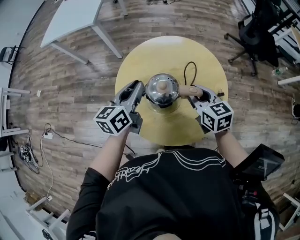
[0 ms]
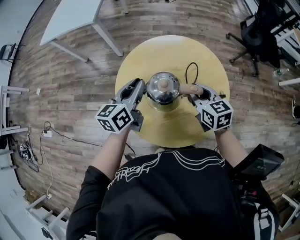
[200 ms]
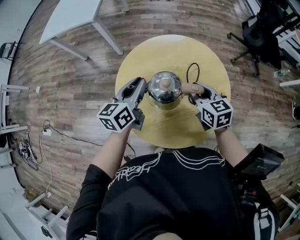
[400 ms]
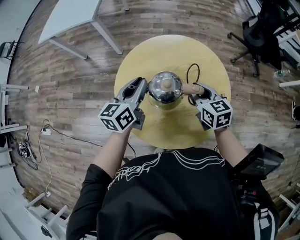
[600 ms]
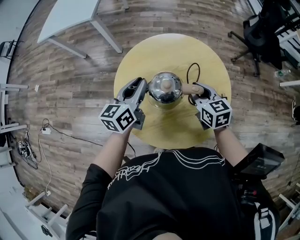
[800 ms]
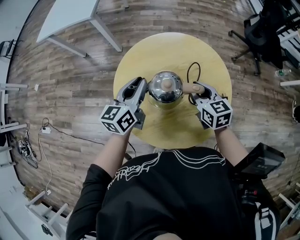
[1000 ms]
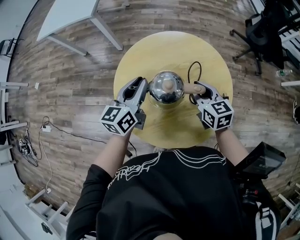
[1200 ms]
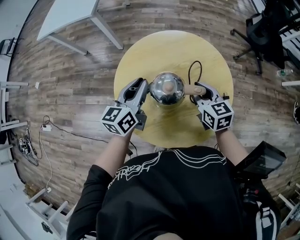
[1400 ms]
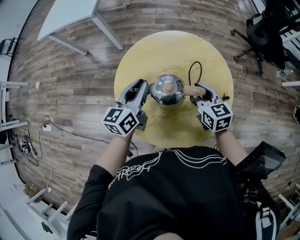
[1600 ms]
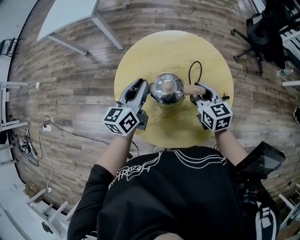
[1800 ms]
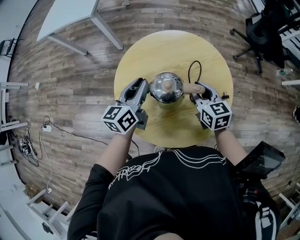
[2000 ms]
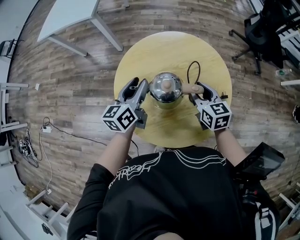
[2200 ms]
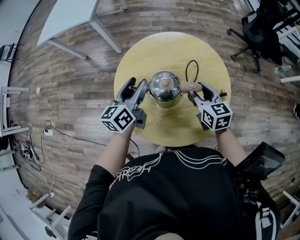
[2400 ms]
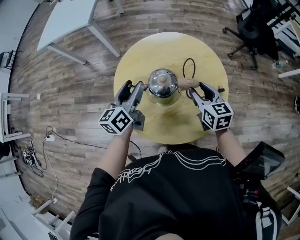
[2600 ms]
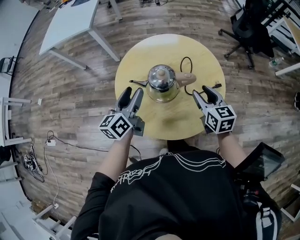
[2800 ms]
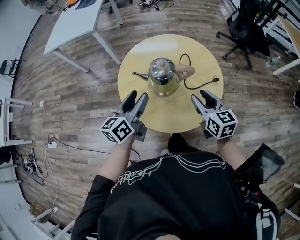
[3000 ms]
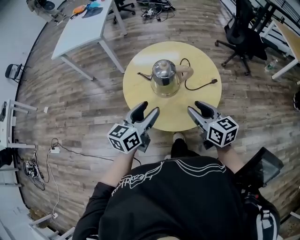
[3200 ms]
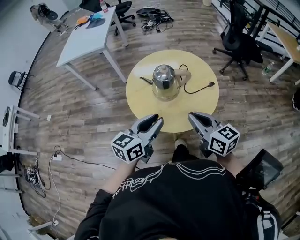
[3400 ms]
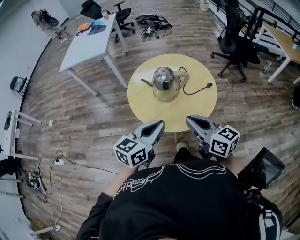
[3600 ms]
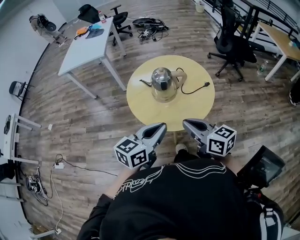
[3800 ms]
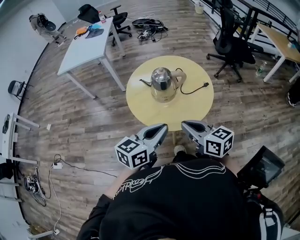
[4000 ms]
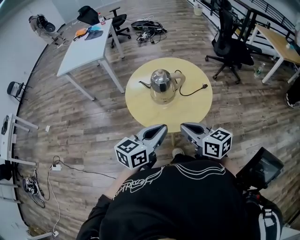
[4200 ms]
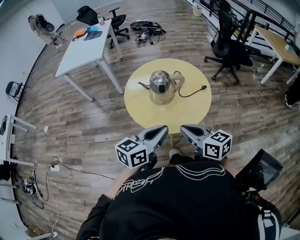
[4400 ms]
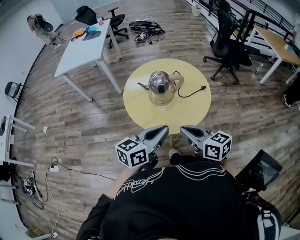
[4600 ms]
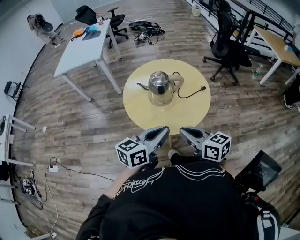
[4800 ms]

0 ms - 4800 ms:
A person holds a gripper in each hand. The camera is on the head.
0 ms - 1600 ms: The right gripper travels downward by about 5 cm.
1600 ms - 3200 ms: The left gripper goes about 20 cm backward, and opens up; the right gripper moves backward and upward, roughly 20 cm.
3200 ms - 4800 ms: The right gripper travels backward by some 10 cm, and closes, while the left gripper is displaced backward, to the right and upward by approximately 15 cm, and closes up.

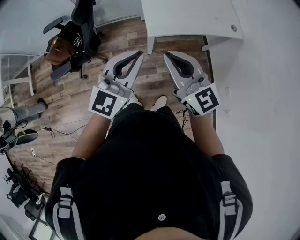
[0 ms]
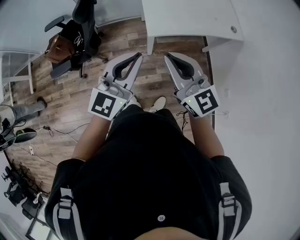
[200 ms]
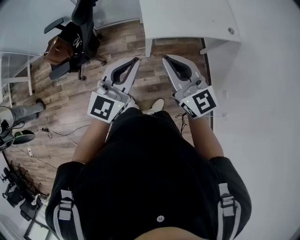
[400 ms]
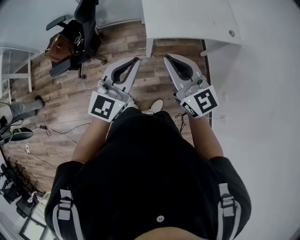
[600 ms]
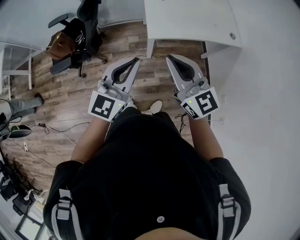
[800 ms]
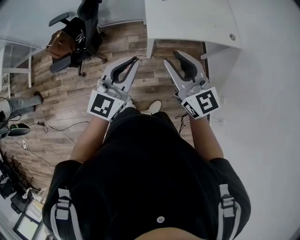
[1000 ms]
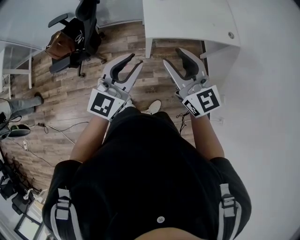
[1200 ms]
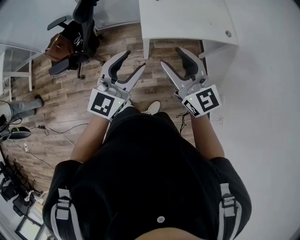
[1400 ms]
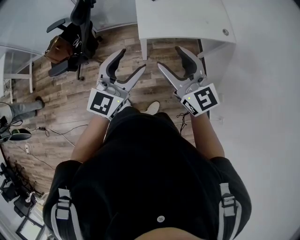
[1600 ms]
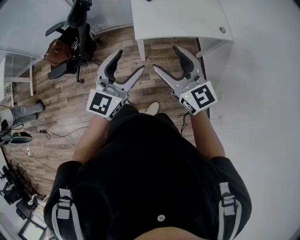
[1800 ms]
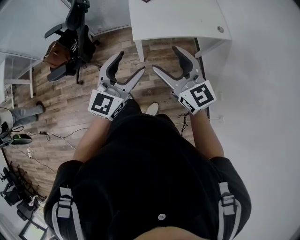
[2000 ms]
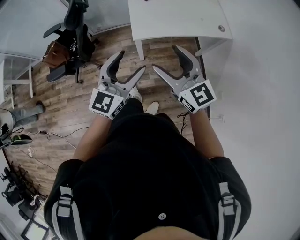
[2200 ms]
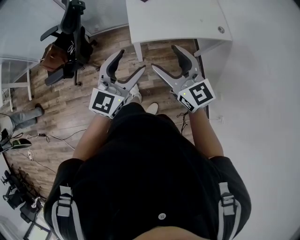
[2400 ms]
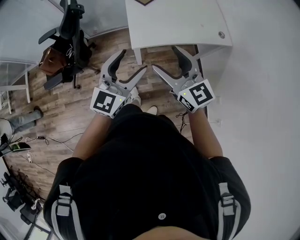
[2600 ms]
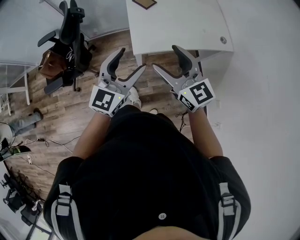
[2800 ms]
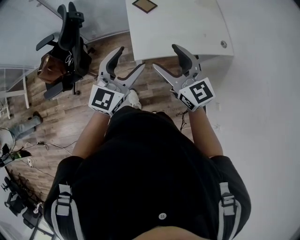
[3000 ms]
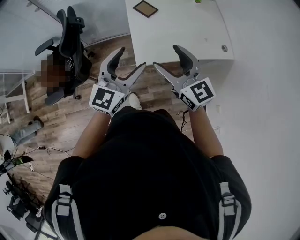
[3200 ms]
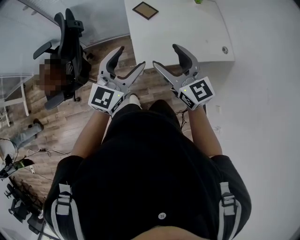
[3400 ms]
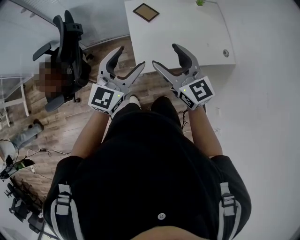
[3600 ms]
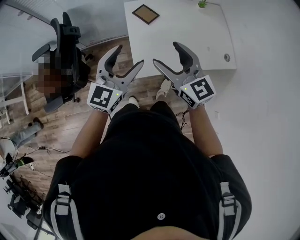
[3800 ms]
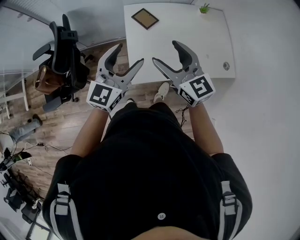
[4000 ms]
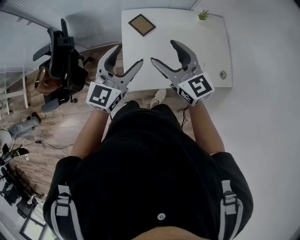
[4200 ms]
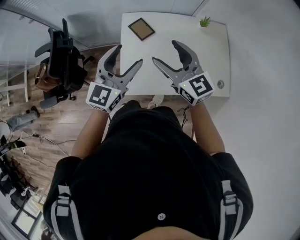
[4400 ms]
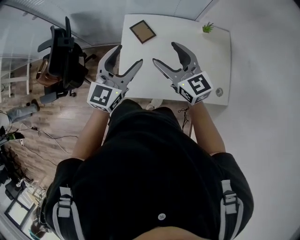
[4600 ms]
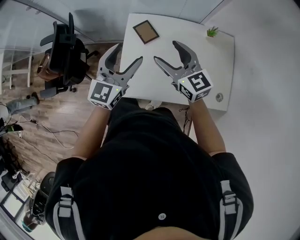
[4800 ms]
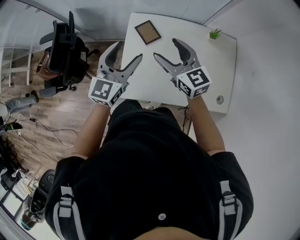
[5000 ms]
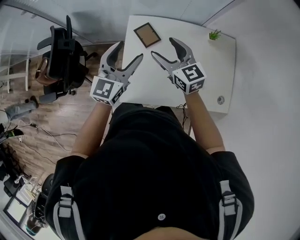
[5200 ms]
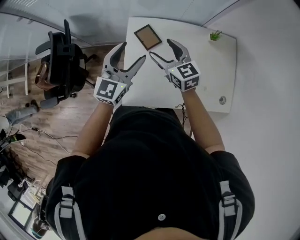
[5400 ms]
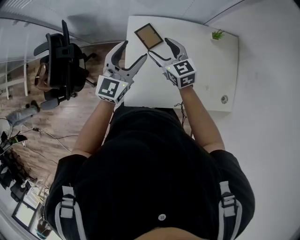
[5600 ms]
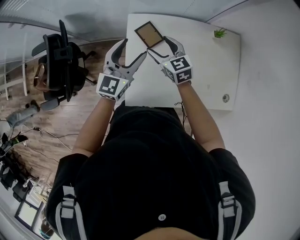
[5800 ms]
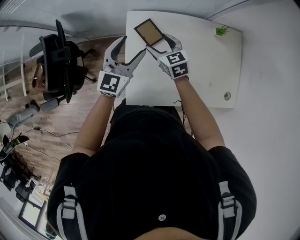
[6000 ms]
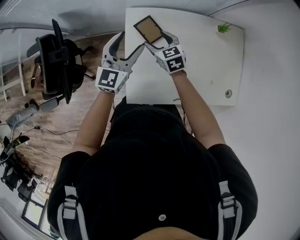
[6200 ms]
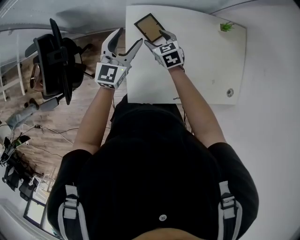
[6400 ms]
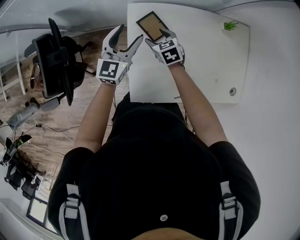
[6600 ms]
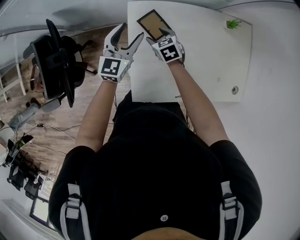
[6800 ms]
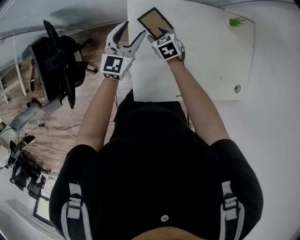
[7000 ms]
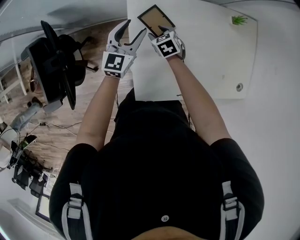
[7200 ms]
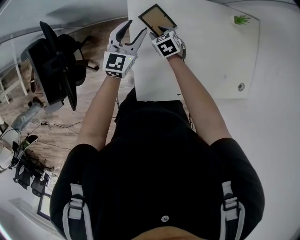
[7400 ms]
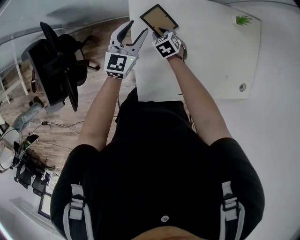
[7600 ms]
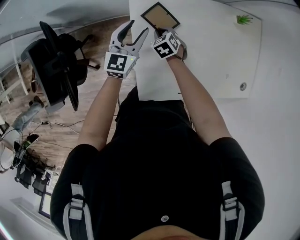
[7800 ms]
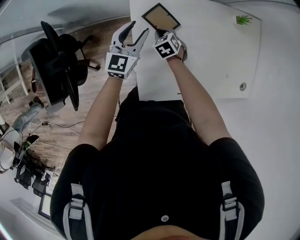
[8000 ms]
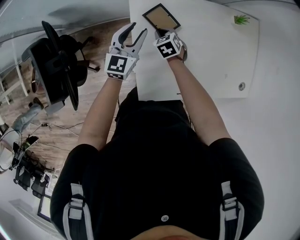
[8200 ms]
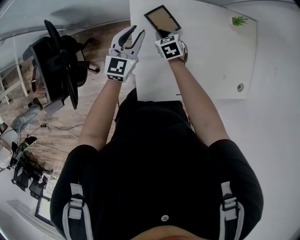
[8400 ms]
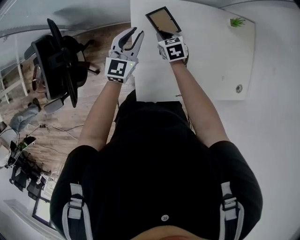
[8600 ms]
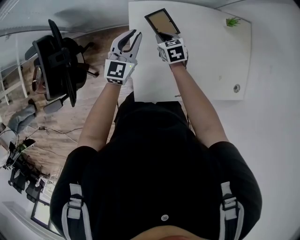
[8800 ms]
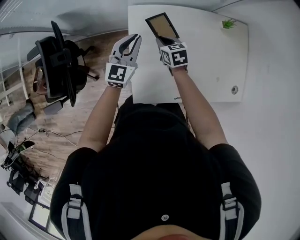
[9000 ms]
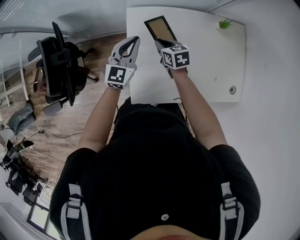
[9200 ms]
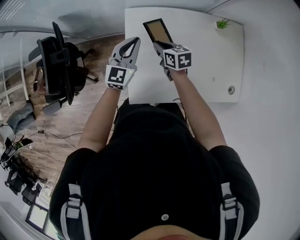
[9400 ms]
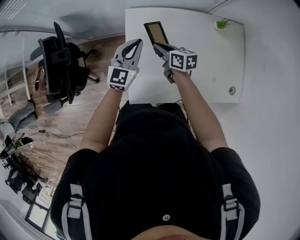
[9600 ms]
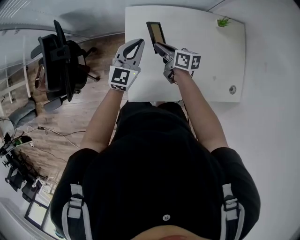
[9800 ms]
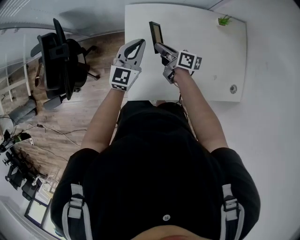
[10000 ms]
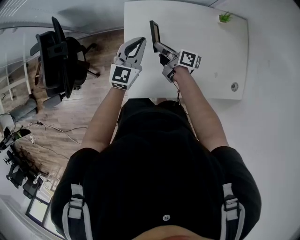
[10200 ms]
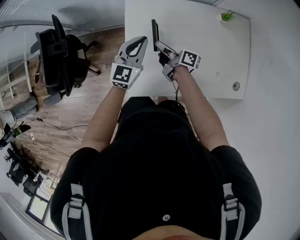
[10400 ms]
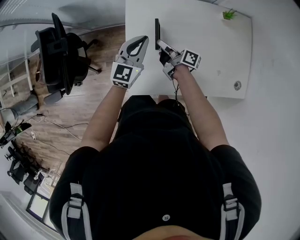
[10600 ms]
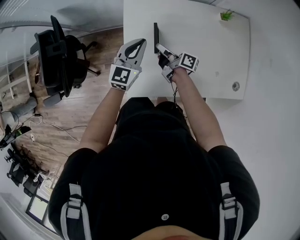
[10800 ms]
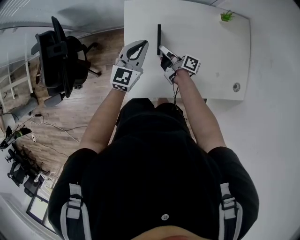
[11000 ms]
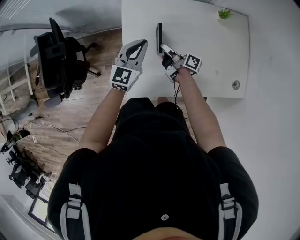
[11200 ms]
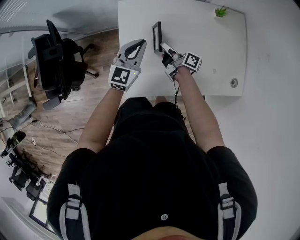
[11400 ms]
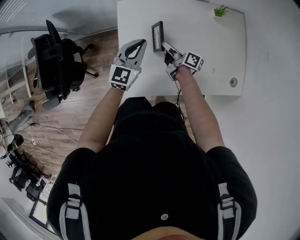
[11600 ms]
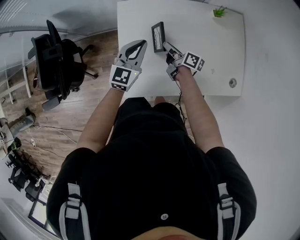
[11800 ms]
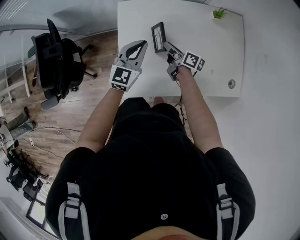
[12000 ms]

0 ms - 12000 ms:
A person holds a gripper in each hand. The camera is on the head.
0 ms - 1600 ms: The right gripper moves to the right, roughly 10 cm, and opens up. Meanwhile the left gripper is displaced backward and to the right by some 10 cm, and opens up.
1600 ms - 3000 ms: The two grippers go about 20 cm forward.
3000 ms - 4400 ms: The two grippers go approximately 30 cm forward.
4400 ms - 6000 ms: The right gripper travels downward and forward by some 30 cm, and swivels some 30 degrees. Meanwhile the left gripper moves forward and downward, approximately 20 cm.
6000 ms - 7600 ms: The right gripper shifts about 20 cm downward, rotates approximately 30 degrees, and closes up. Meanwhile the left gripper is displaced downward and forward by some 15 cm.
7600 ms - 9000 ms: The right gripper heads upward, covering roughly 10 cm, and changes its angle by approximately 20 degrees, while the left gripper moves upward and backward, roughly 10 cm, and closes.
9000 ms - 10400 ms: The left gripper shifts approximately 10 cm backward and to the right, while the right gripper moves backward, roughly 5 cm, and angles its fingers upward, by some 40 degrees.
10400 ms - 12000 ms: The right gripper is displaced to the right by some 10 cm.

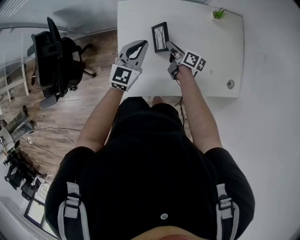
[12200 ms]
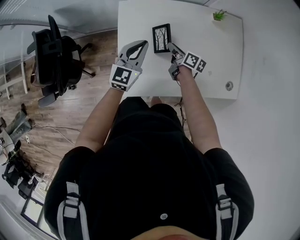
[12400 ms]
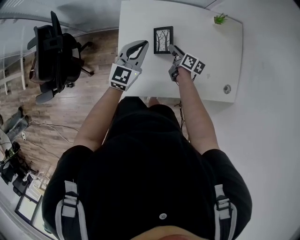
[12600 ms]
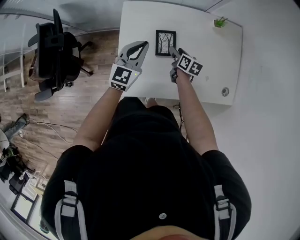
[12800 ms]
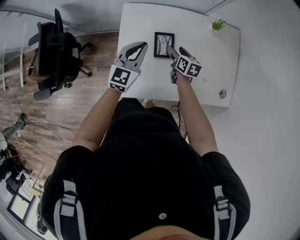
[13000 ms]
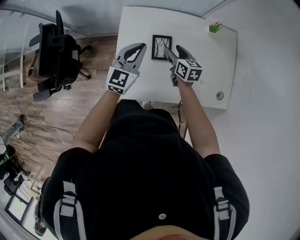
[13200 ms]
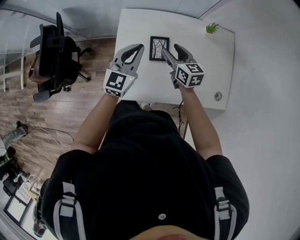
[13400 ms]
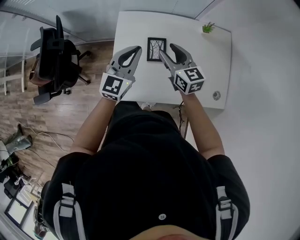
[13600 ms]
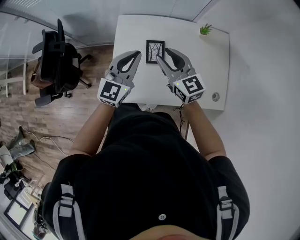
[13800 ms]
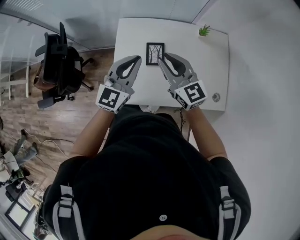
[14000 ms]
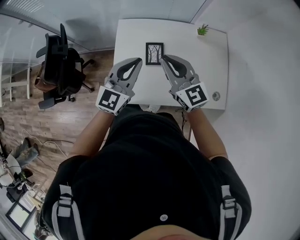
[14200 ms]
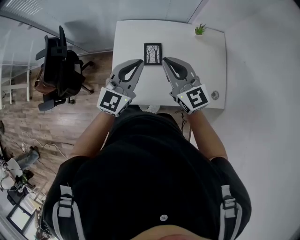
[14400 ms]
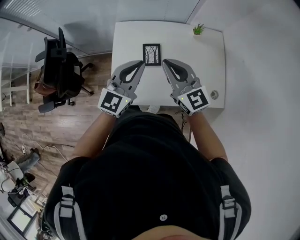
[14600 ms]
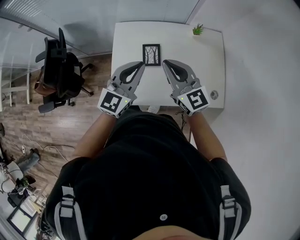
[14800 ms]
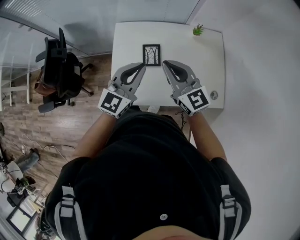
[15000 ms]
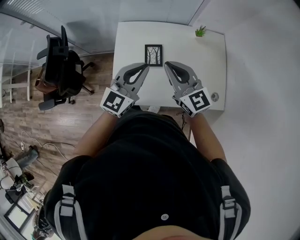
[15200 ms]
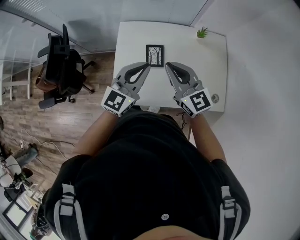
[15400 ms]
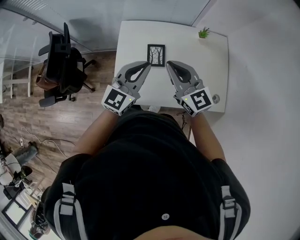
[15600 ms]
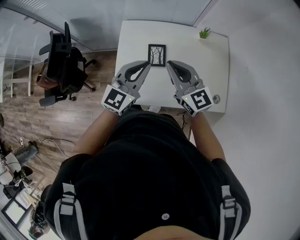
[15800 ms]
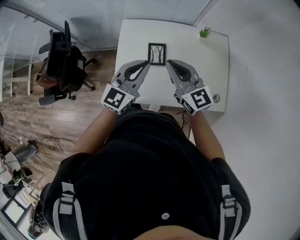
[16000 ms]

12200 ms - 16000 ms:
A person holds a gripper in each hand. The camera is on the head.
12200 ms - 13400 ms: The left gripper travels upward by roughly 5 cm. The right gripper shifts some 15 cm upward, rotates around the line of its fingers by approximately 50 degrees, counterclockwise from behind, and opens.
13400 ms - 14800 ms: The right gripper travels upward and backward by approximately 20 cm, changes its angle by roughly 30 degrees, and closes its fingers. Meanwhile the left gripper heads backward, upward and to the right, covering some 15 cm.
14800 ms - 16000 ms: The two grippers keep their place.

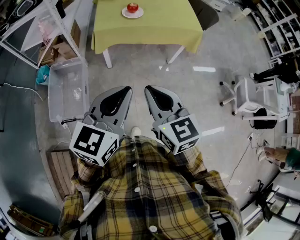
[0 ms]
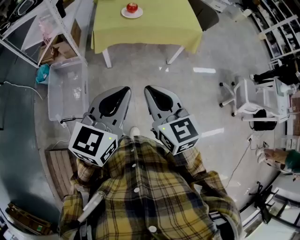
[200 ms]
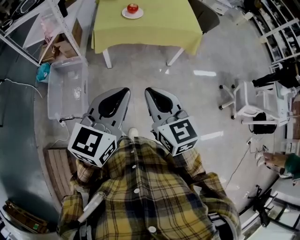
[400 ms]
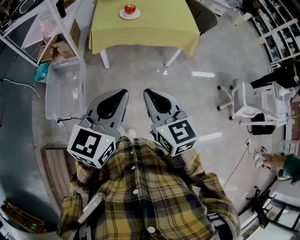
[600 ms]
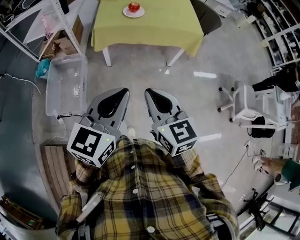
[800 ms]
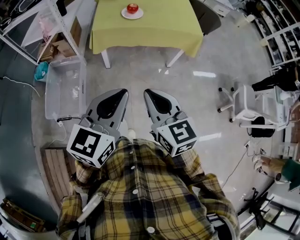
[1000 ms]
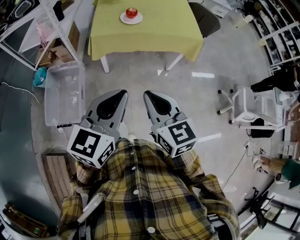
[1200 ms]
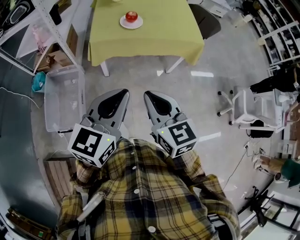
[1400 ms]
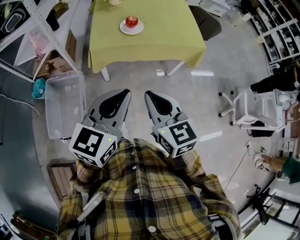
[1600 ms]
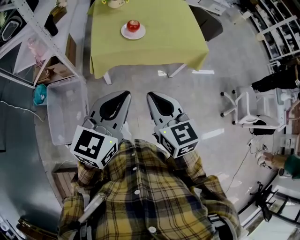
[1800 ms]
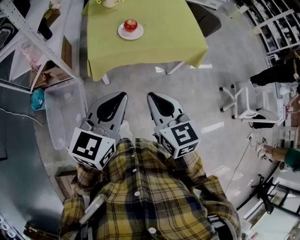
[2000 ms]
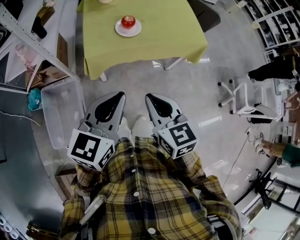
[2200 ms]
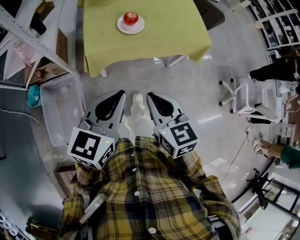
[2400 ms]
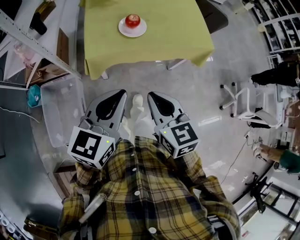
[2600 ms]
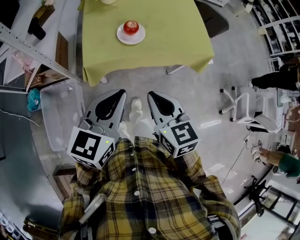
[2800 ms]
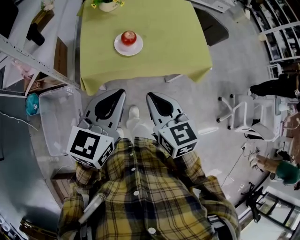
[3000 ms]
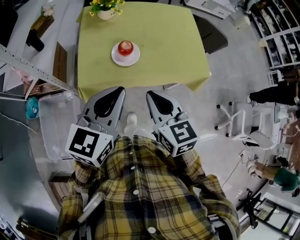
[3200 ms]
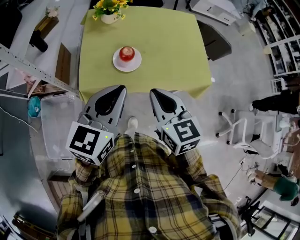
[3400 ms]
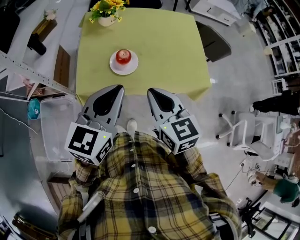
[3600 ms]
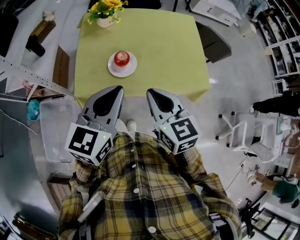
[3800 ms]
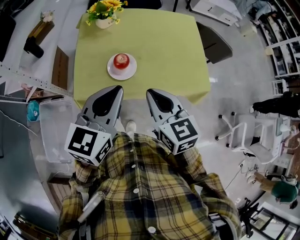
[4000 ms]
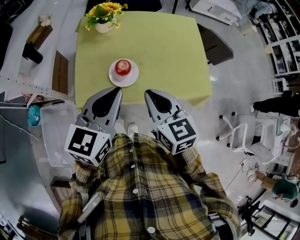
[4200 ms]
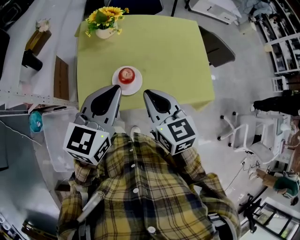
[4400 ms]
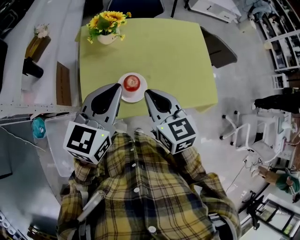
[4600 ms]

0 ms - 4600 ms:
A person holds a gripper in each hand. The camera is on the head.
0 ms - 1600 ms: Both grippers travel together forward, some 15 cm.
1600 ms - 3000 ms: Both grippers move forward, roughly 20 cm.
3000 ms - 4600 ms: The two grippers go roughly 25 cm forward.
